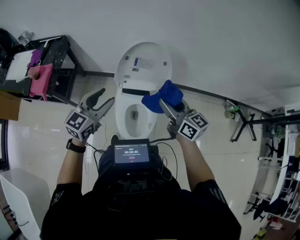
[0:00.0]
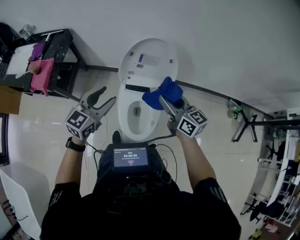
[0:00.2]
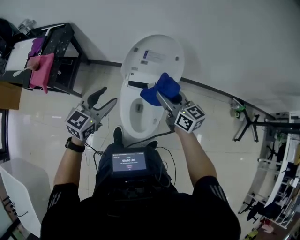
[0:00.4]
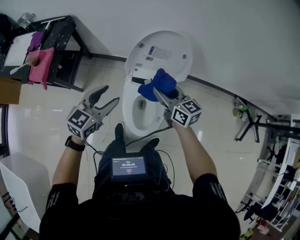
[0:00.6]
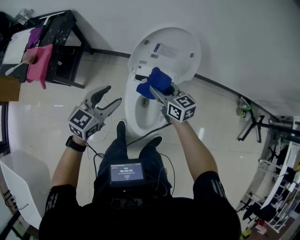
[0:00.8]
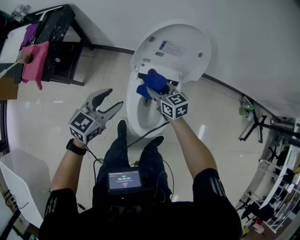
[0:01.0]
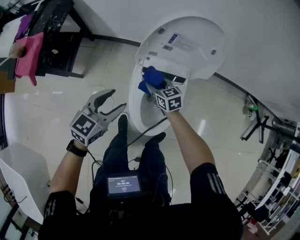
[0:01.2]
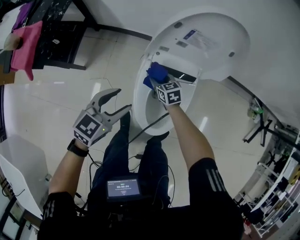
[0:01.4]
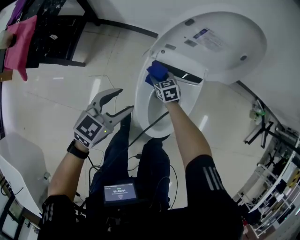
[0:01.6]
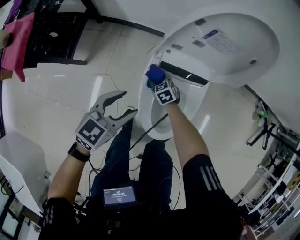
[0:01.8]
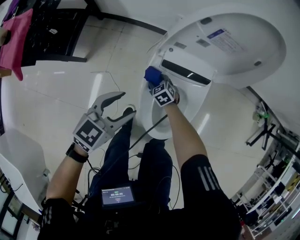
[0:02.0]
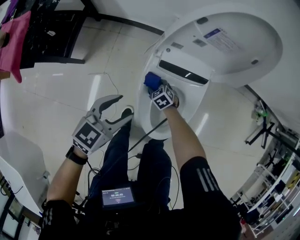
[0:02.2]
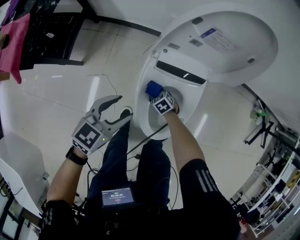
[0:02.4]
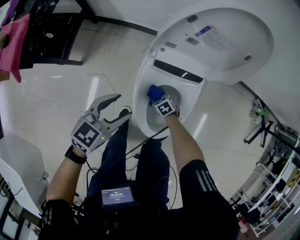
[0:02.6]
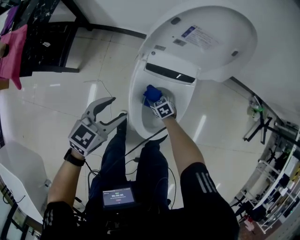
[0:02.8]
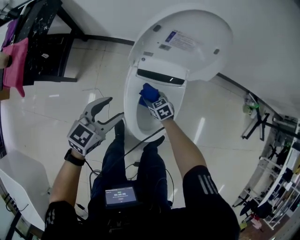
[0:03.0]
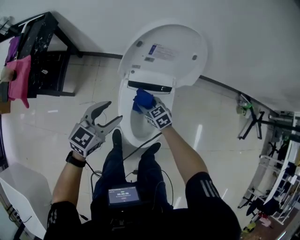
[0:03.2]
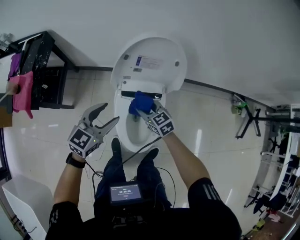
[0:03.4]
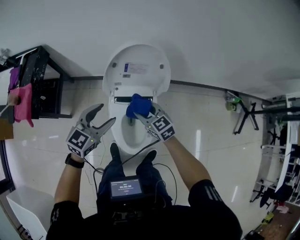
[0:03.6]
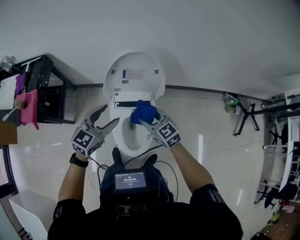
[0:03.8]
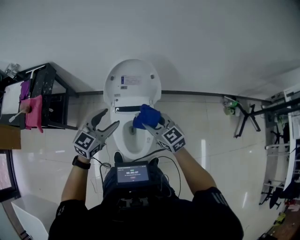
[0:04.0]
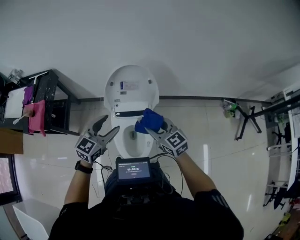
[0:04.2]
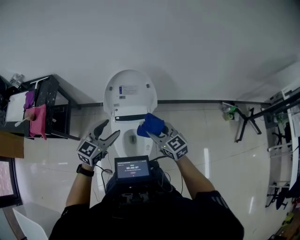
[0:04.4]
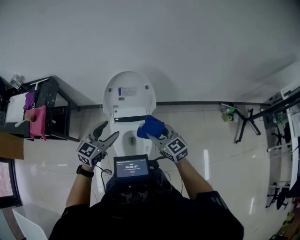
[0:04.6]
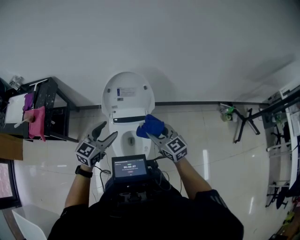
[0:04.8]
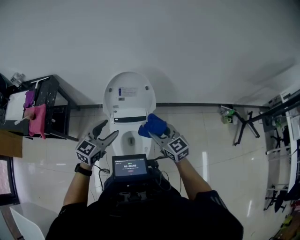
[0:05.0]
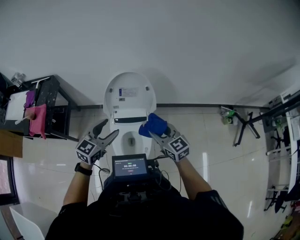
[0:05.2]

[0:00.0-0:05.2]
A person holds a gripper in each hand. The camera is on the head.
0:00.0 to 0:01.8: The left gripper shifts approximately 35 cm downward, while the right gripper shifts some 60 cm downward, and tilts its fingers approximately 50 degrees downward.
0:01.8 to 0:03.4: The left gripper moves upward, about 15 cm. The right gripper moves upward, some 30 cm, and changes its angle by roughly 20 degrees.
0:03.4 to 0:05.2: The right gripper shifts about 30 cm upward and to the right. Meanwhile the left gripper goes about 15 cm upward and to the right.

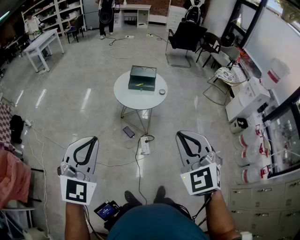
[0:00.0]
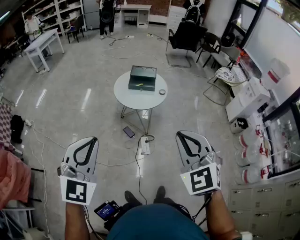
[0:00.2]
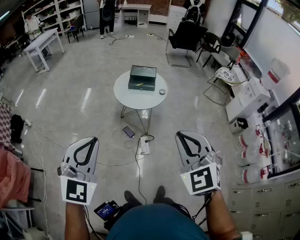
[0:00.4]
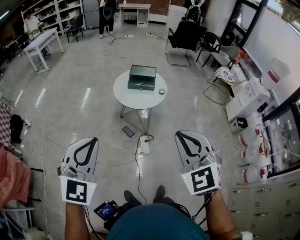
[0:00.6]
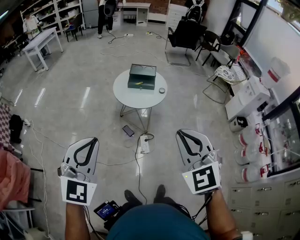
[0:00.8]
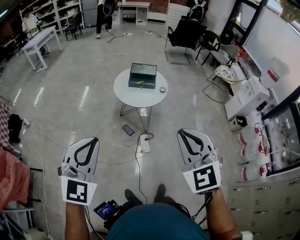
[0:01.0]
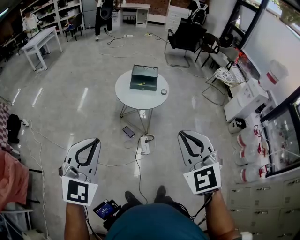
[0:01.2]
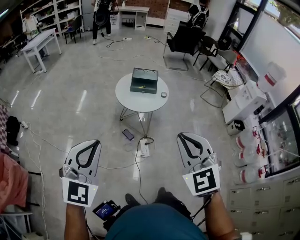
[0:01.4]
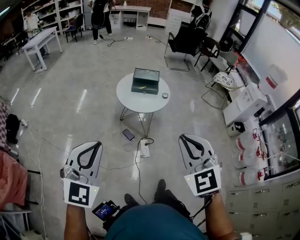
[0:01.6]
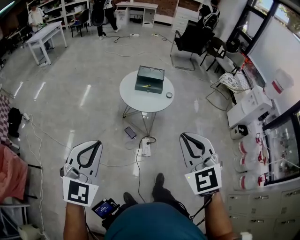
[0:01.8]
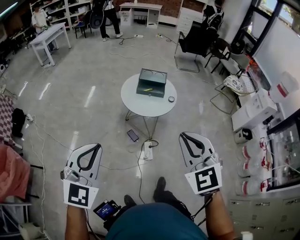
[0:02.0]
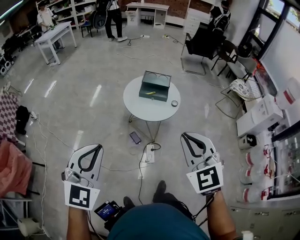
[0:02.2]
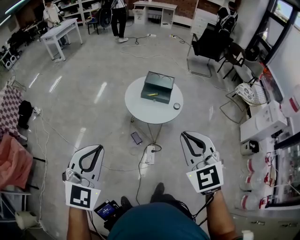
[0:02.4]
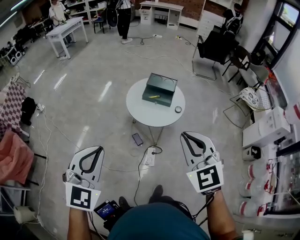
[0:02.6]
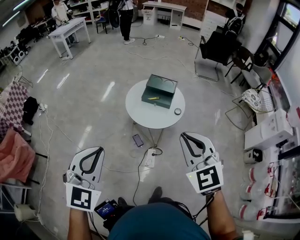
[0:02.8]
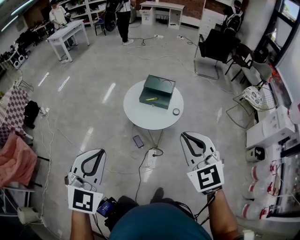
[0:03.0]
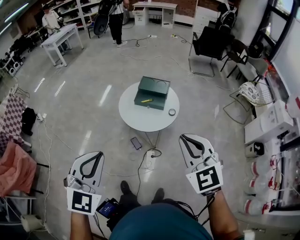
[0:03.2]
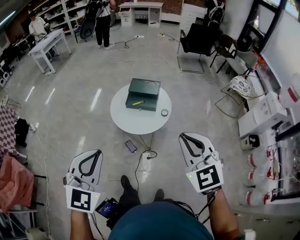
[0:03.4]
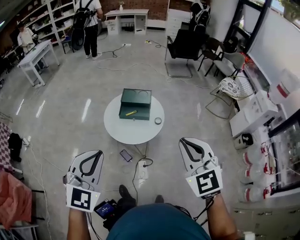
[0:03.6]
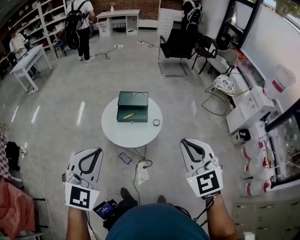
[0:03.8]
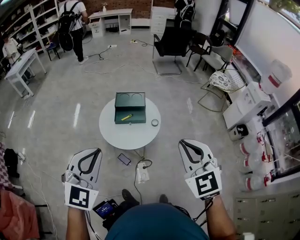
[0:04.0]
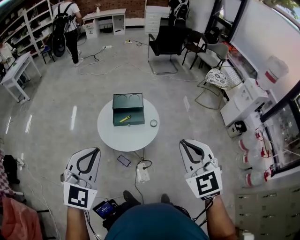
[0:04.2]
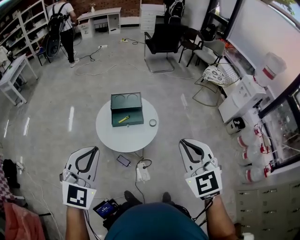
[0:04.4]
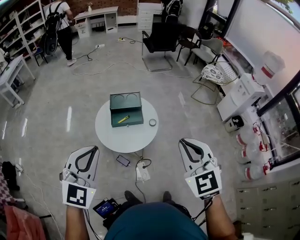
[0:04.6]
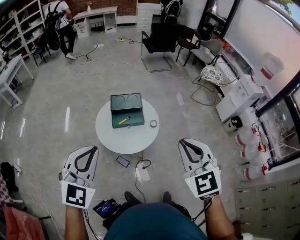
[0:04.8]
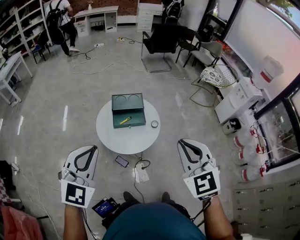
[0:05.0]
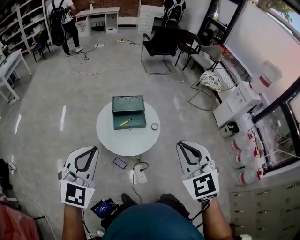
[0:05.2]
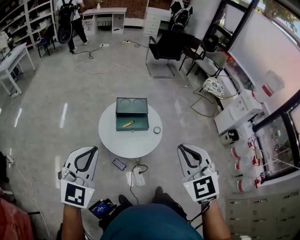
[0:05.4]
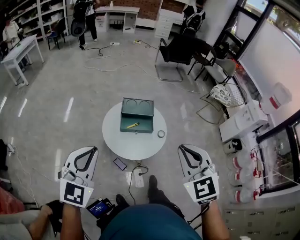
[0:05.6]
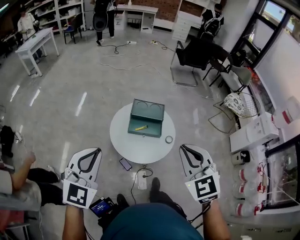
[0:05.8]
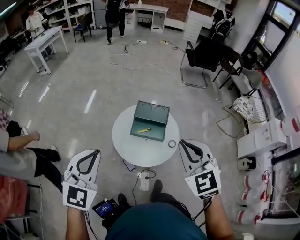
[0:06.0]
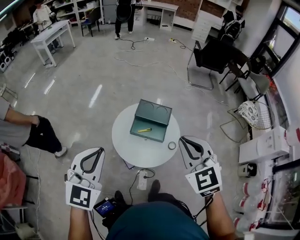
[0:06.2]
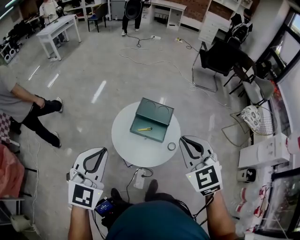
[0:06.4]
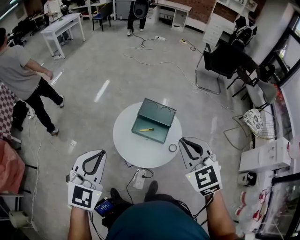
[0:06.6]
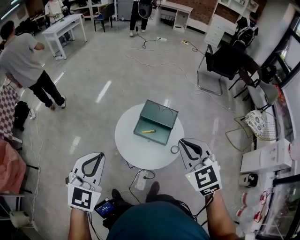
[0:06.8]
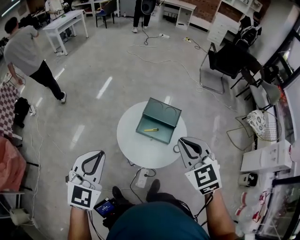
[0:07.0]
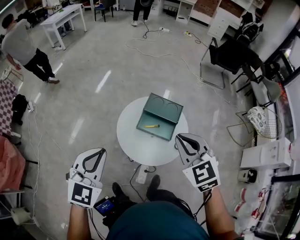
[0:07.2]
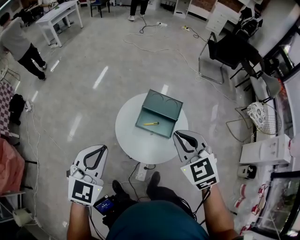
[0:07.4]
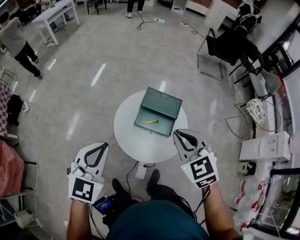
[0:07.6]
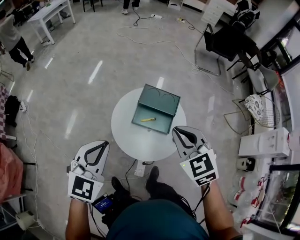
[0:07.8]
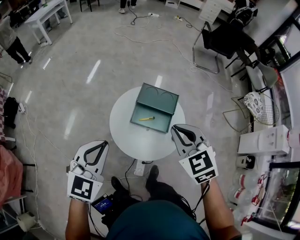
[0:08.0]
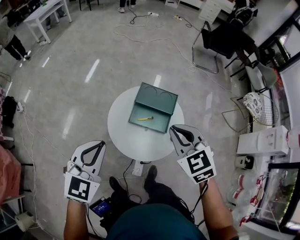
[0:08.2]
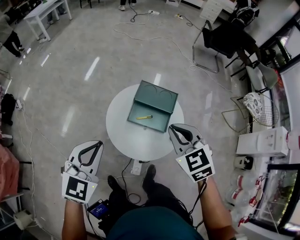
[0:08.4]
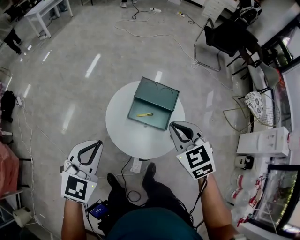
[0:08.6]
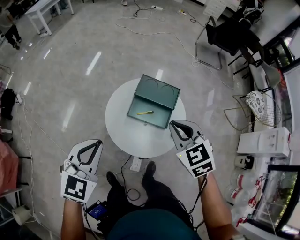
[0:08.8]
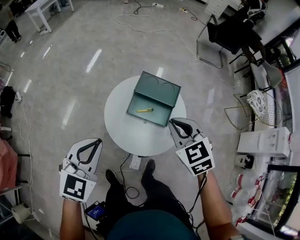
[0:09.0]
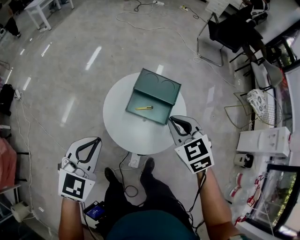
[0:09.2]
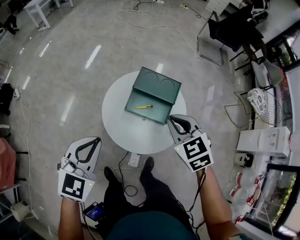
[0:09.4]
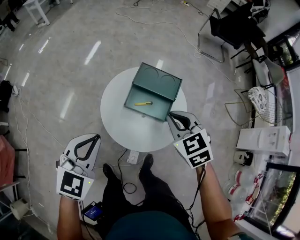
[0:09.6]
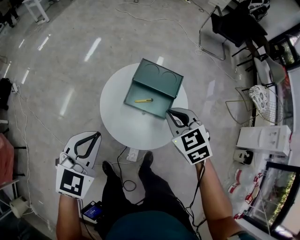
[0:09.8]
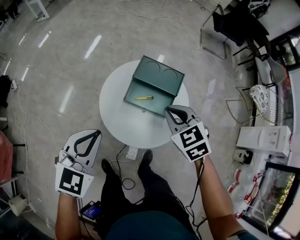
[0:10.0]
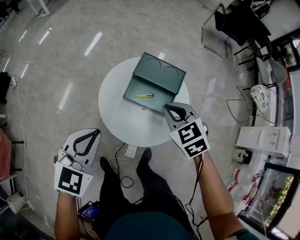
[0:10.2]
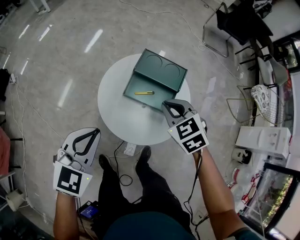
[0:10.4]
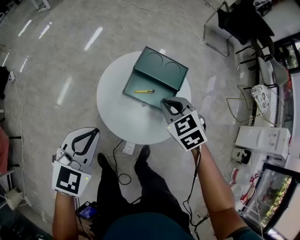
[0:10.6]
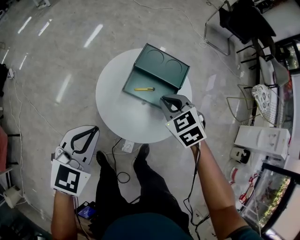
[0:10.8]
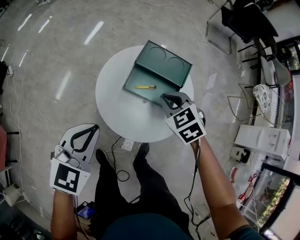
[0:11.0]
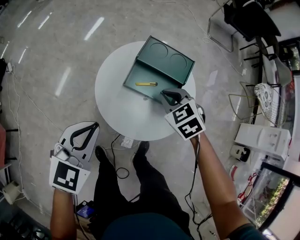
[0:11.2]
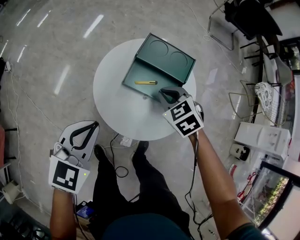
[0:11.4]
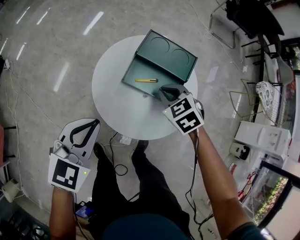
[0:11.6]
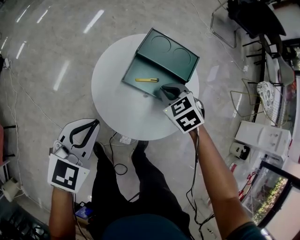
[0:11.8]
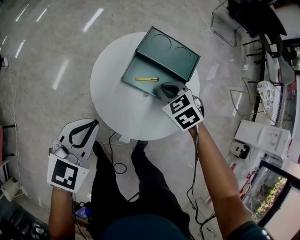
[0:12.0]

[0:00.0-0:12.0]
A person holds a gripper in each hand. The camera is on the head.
0:00.0 to 0:01.6: Both grippers travel together to the left, approximately 5 cm.
0:01.6 to 0:03.0: The right gripper goes some 30 cm forward and to the right. The left gripper is displaced to the right and forward by roughly 25 cm.
0:03.0 to 0:04.4: The left gripper ends up some 25 cm from where it was, and turns by some 30 degrees; the right gripper shifts by roughly 10 cm, and changes its angle by about 30 degrees.
0:04.4 to 0:06.0: The left gripper shifts about 15 cm forward and to the left. The right gripper shifts roughly 20 cm forward and to the left.
0:06.0 to 0:07.6: Both grippers travel together forward and downward, roughly 15 cm.
0:07.6 to 0:09.0: Both grippers travel together downward, about 10 cm.
0:09.0 to 0:10.4: Both grippers move downward, approximately 10 cm.
0:10.4 to 0:12.0: Both grippers travel together downward, some 15 cm.

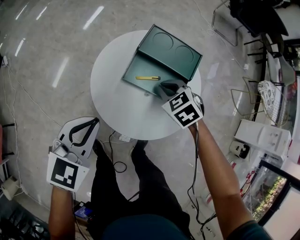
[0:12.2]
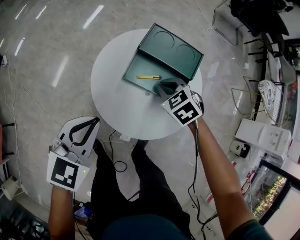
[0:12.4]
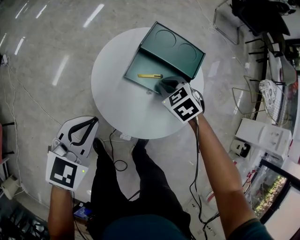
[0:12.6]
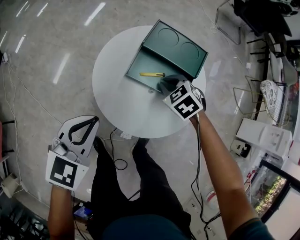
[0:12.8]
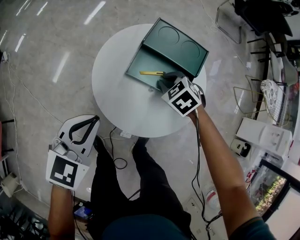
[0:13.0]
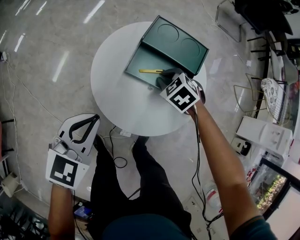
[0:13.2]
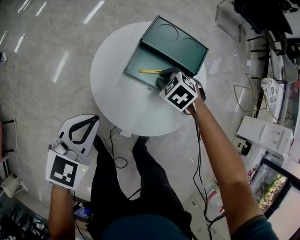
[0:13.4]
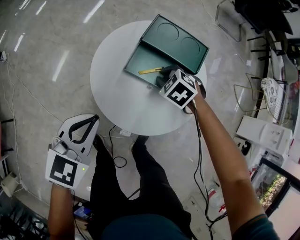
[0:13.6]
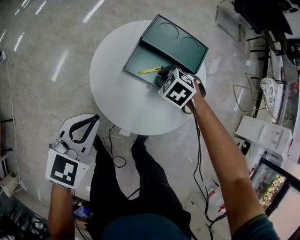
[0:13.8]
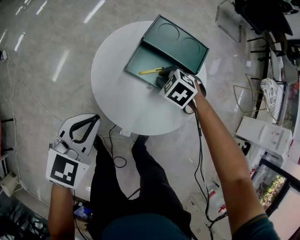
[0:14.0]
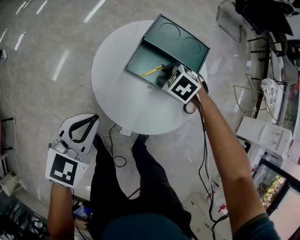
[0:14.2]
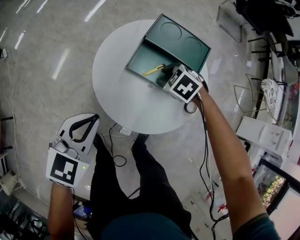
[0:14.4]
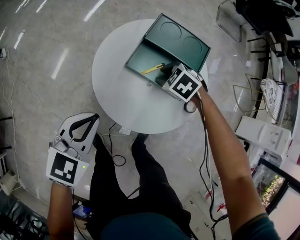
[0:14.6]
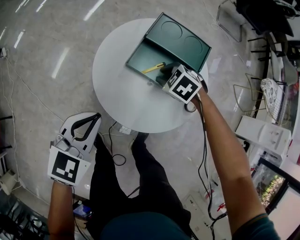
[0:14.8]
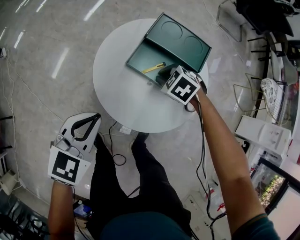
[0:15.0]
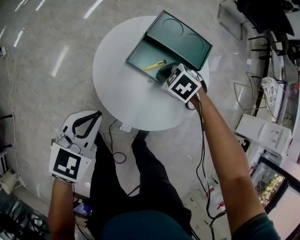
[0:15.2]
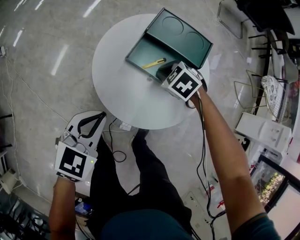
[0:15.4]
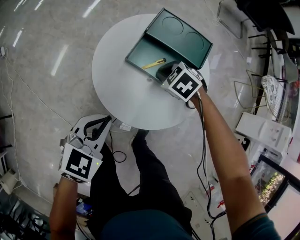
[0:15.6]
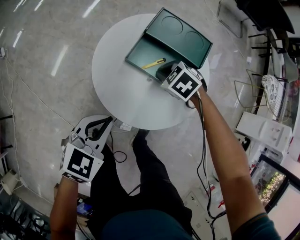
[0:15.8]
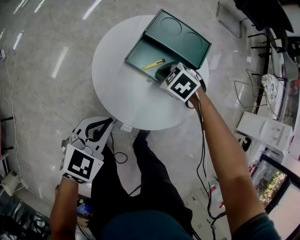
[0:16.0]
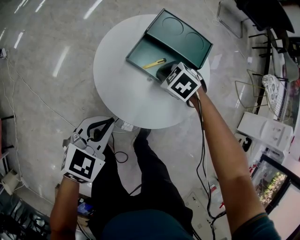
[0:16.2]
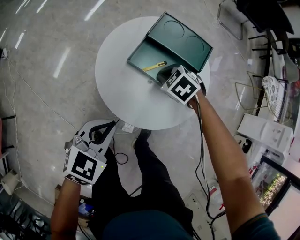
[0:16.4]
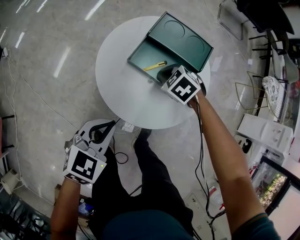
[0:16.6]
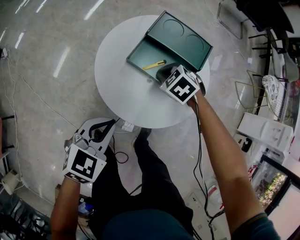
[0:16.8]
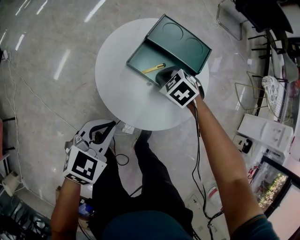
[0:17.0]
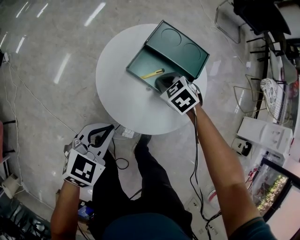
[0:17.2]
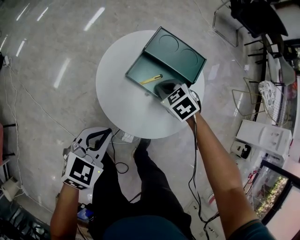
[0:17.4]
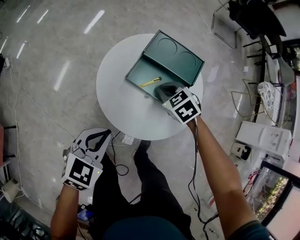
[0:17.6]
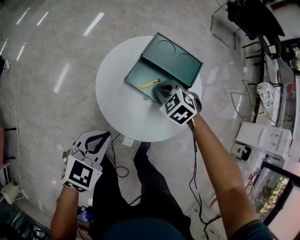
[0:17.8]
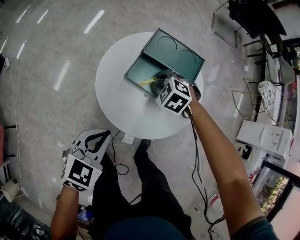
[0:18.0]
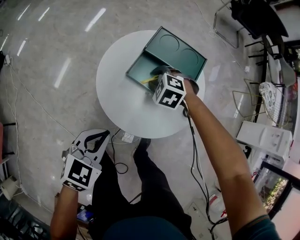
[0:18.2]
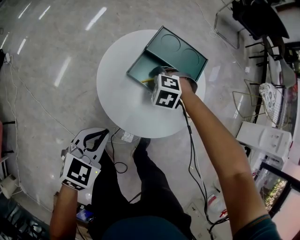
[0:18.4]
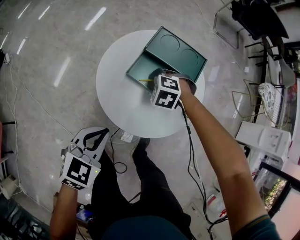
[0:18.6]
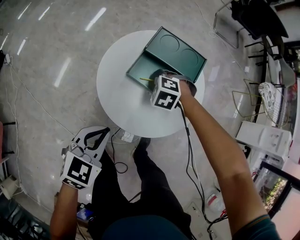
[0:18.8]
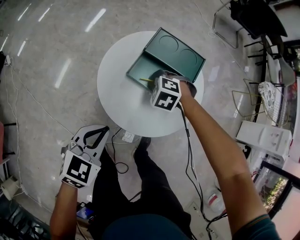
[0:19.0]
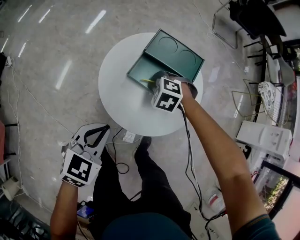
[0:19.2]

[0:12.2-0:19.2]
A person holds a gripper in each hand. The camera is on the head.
0:12.2 to 0:13.6: The right gripper goes roughly 5 cm downward.
0:13.6 to 0:15.0: The right gripper opens, then closes again.
0:15.0 to 0:16.4: The left gripper is displaced backward by about 5 cm.
0:16.4 to 0:17.8: The right gripper moves upward, roughly 5 cm.
0:17.8 to 0:19.2: The right gripper opens, then closes again.
